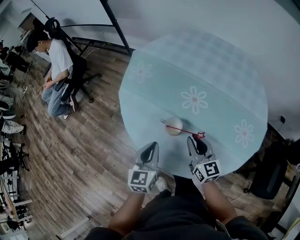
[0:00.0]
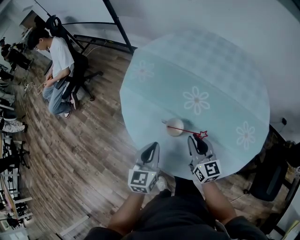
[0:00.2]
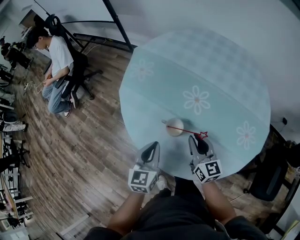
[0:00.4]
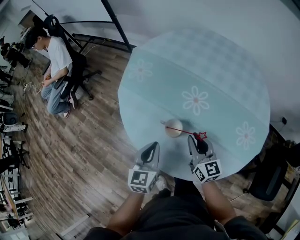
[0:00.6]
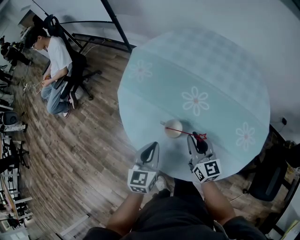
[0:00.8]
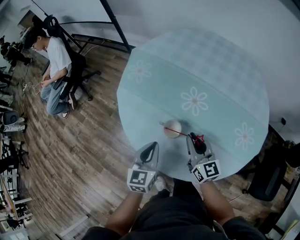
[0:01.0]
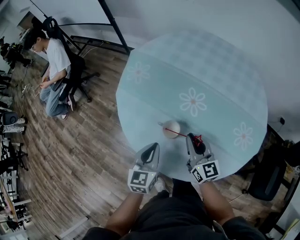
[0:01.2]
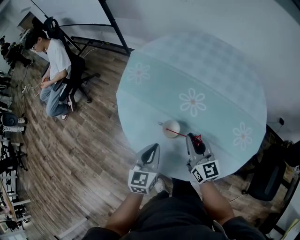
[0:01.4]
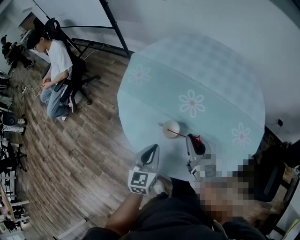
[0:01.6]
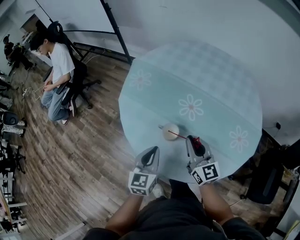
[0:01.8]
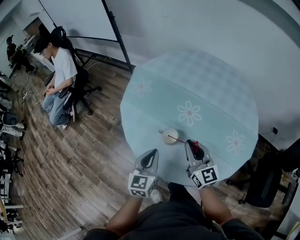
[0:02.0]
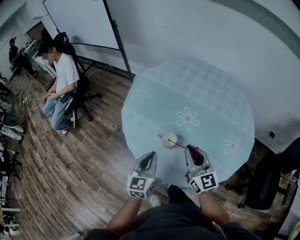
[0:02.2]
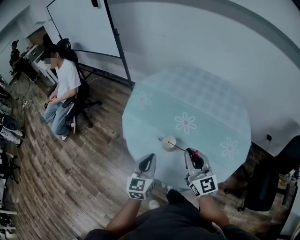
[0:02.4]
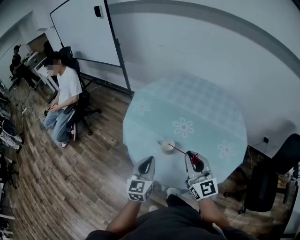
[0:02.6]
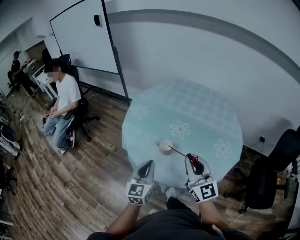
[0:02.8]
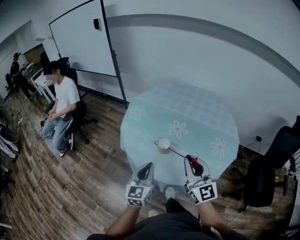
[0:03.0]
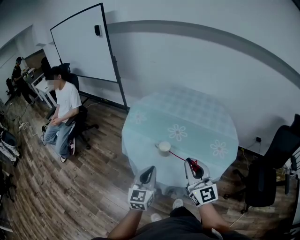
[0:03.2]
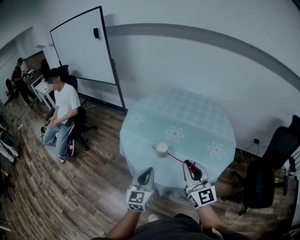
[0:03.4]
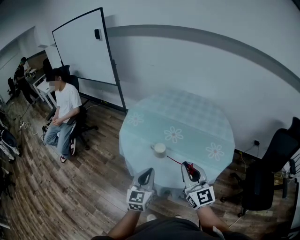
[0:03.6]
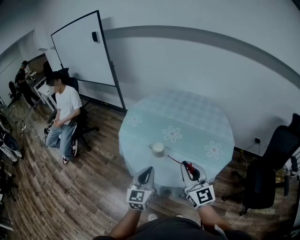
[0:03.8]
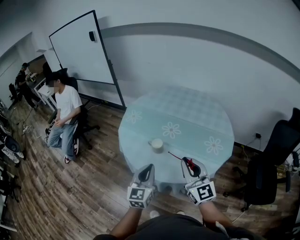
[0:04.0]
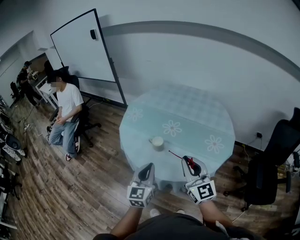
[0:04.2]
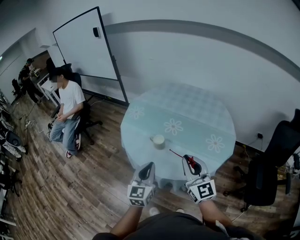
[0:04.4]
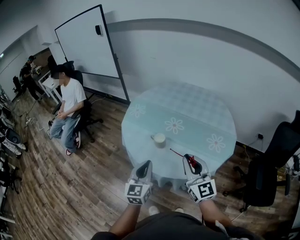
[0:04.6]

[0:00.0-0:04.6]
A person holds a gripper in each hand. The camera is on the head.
0:00.0 to 0:01.6: There are only small adjustments of the grippers.
0:01.6 to 0:03.0: The left gripper is displaced backward and upward by roughly 20 cm, while the right gripper shifts about 30 cm upward and backward, and turns by approximately 20 degrees.
0:03.0 to 0:04.6: The left gripper moves backward, some 5 cm; the right gripper is displaced backward and to the right by roughly 10 cm.

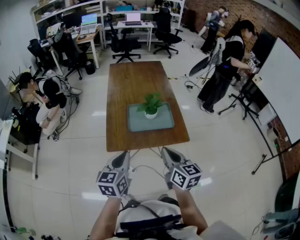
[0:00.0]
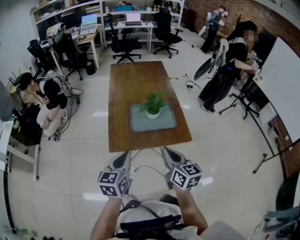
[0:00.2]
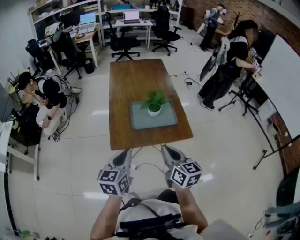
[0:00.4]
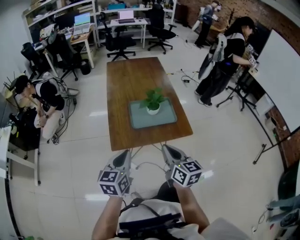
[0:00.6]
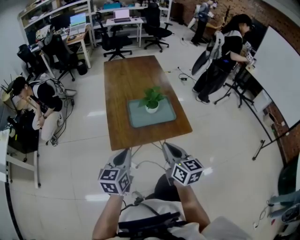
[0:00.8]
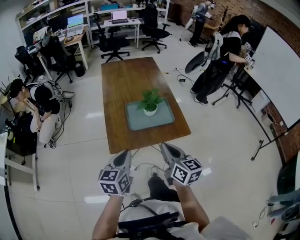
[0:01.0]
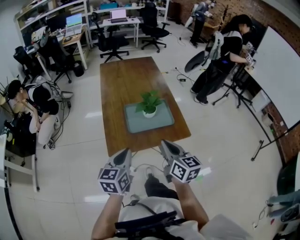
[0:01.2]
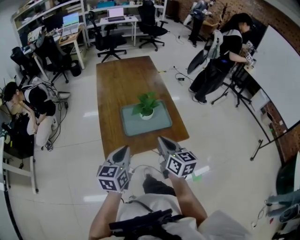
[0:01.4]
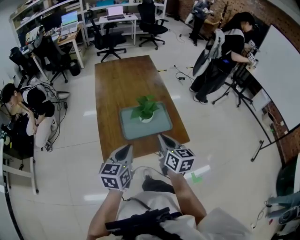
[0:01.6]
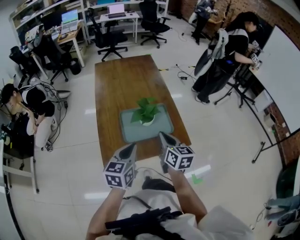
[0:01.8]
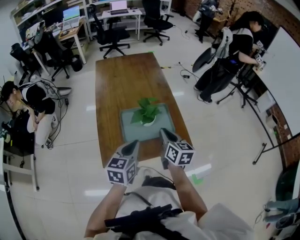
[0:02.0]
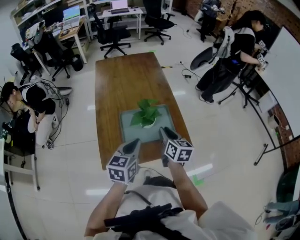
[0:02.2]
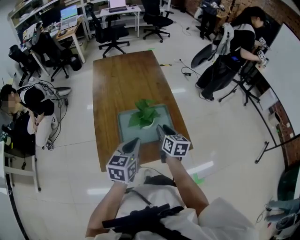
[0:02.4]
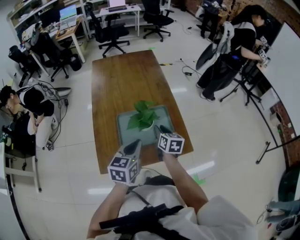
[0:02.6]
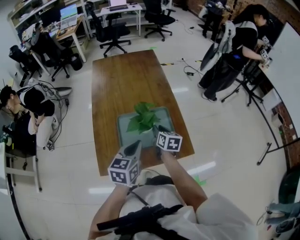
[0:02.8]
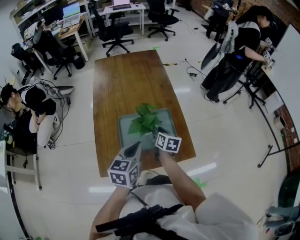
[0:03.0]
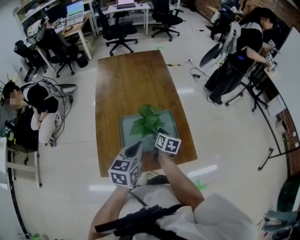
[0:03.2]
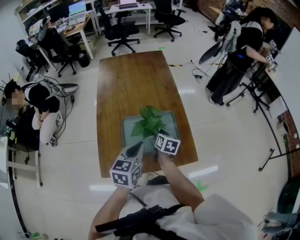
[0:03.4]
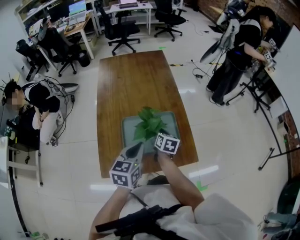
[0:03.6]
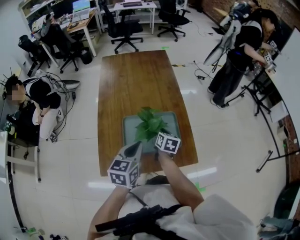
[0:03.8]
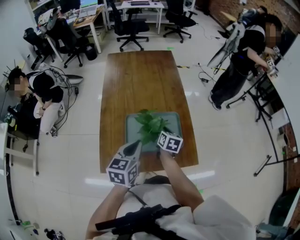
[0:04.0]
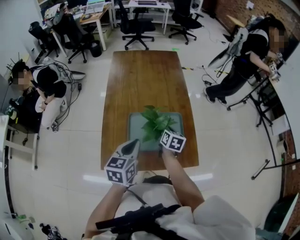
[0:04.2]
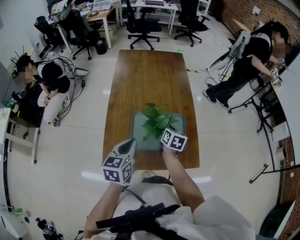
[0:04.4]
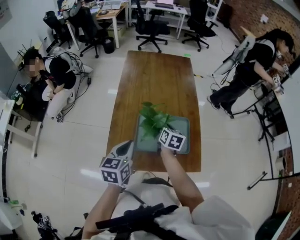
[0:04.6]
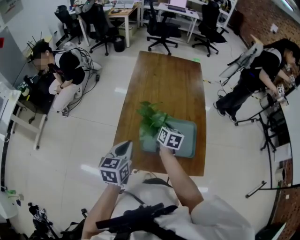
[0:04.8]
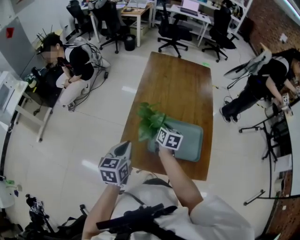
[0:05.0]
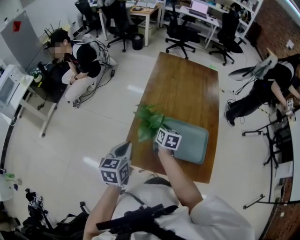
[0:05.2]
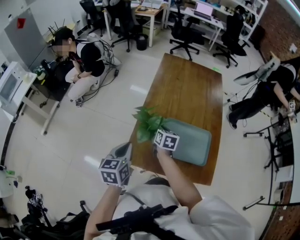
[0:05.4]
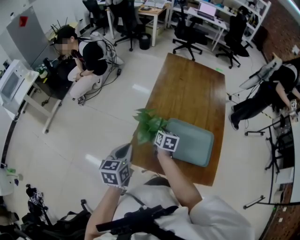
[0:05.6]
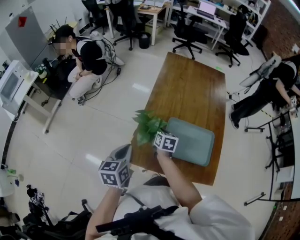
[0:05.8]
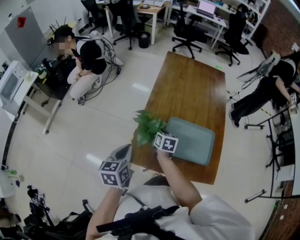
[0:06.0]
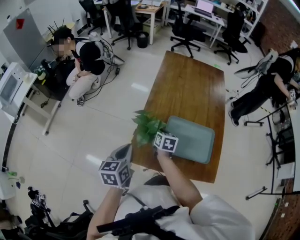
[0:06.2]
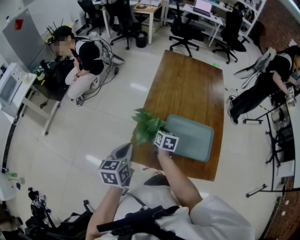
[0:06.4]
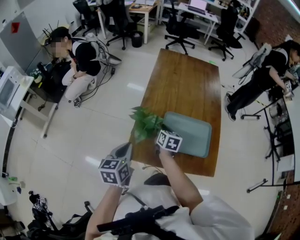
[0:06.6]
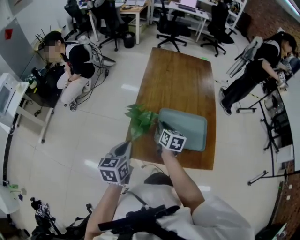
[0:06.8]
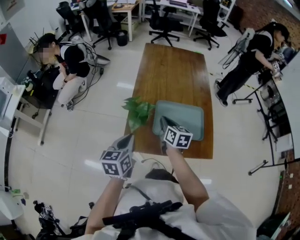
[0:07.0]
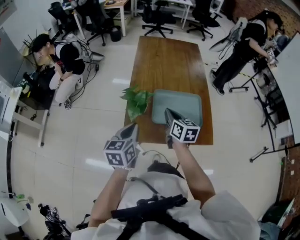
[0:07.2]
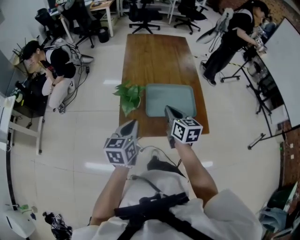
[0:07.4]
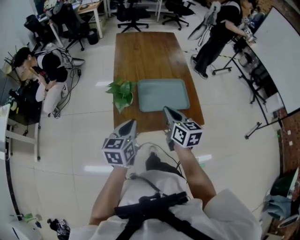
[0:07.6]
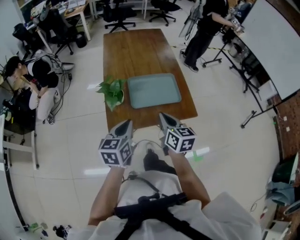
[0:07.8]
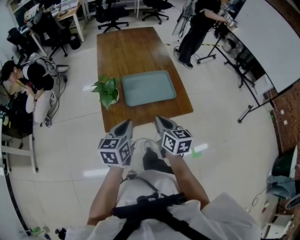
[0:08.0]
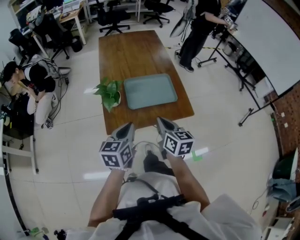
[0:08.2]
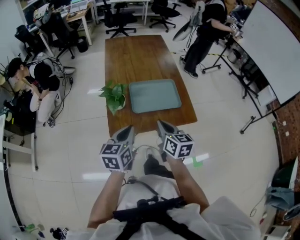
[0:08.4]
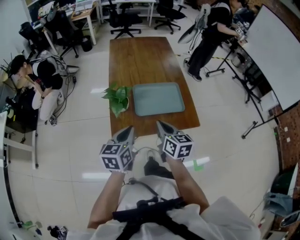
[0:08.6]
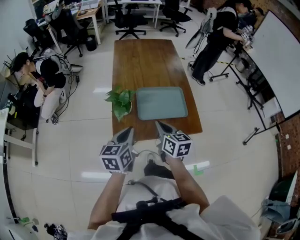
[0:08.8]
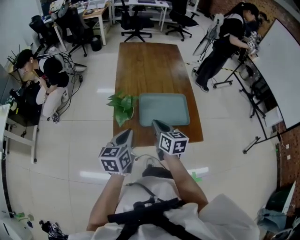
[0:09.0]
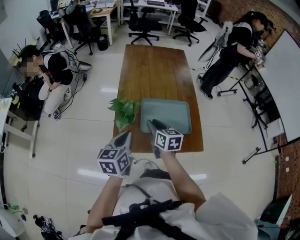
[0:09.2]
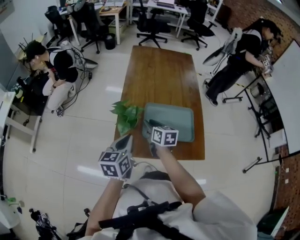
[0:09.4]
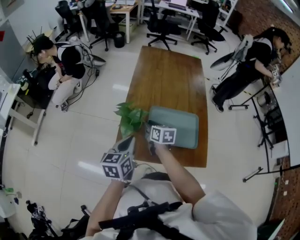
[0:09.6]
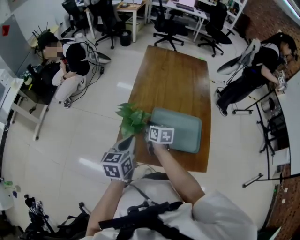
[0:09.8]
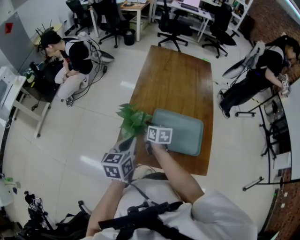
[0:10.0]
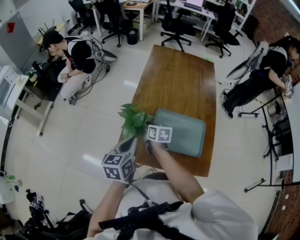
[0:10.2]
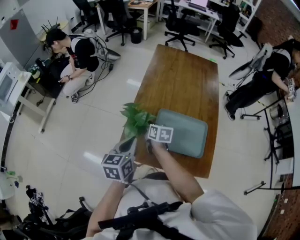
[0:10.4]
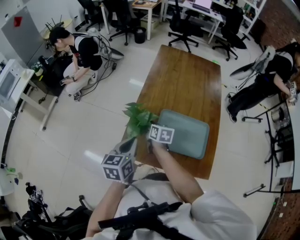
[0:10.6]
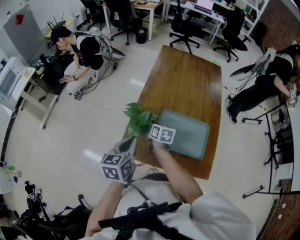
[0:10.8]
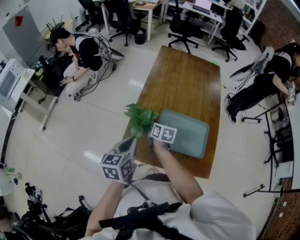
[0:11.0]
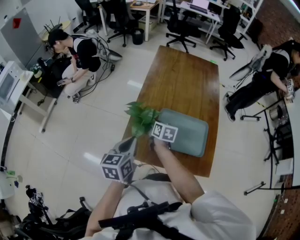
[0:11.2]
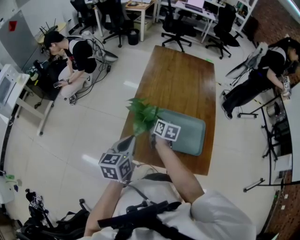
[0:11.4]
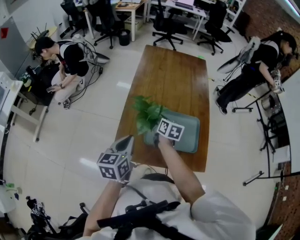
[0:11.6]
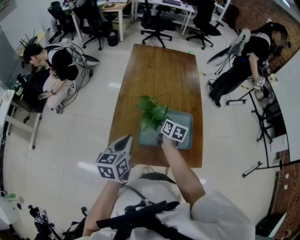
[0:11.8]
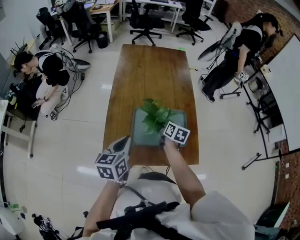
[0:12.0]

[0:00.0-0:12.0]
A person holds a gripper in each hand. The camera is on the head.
0:00.0 to 0:01.6: The two grippers go about 15 cm forward.
0:01.6 to 0:03.0: The left gripper is displaced forward, to the right and downward by roughly 15 cm; the right gripper goes some 25 cm forward and downward, and opens.
0:03.0 to 0:04.4: The right gripper closes up. The left gripper travels to the left by roughly 5 cm.
0:04.4 to 0:06.0: Both grippers move to the left, about 20 cm. The left gripper rotates about 20 degrees; the right gripper rotates approximately 20 degrees.
0:06.0 to 0:07.6: The left gripper moves to the right and backward, approximately 10 cm, and rotates approximately 30 degrees. Meanwhile the right gripper travels backward, upward and to the right by about 30 cm, and changes its angle by roughly 20 degrees.
0:07.6 to 0:09.0: The right gripper goes some 5 cm downward, and travels backward and back again, some 5 cm each way.
0:09.0 to 0:10.4: The left gripper heads forward, covering about 5 cm. Meanwhile the right gripper shifts some 25 cm forward, downward and to the left, and rotates some 20 degrees.
0:10.4 to 0:12.0: The right gripper moves to the right, roughly 20 cm, and rotates some 30 degrees. Meanwhile the left gripper is displaced to the right by some 5 cm.

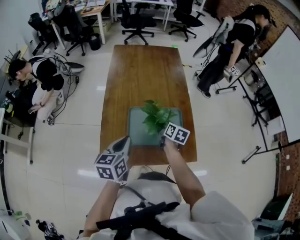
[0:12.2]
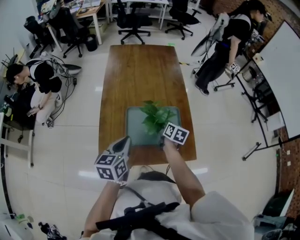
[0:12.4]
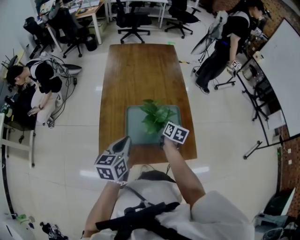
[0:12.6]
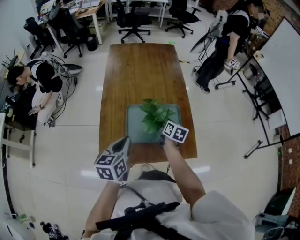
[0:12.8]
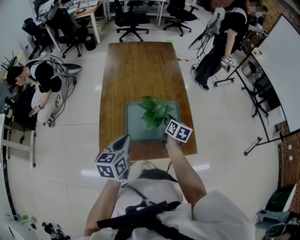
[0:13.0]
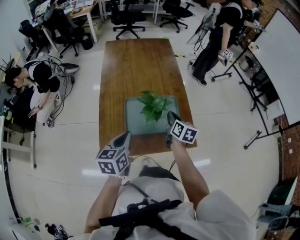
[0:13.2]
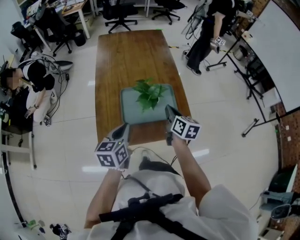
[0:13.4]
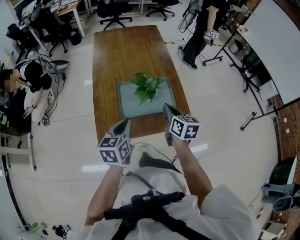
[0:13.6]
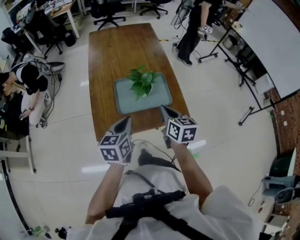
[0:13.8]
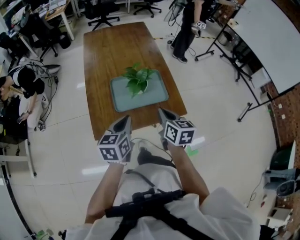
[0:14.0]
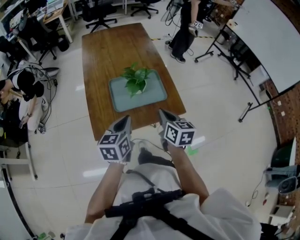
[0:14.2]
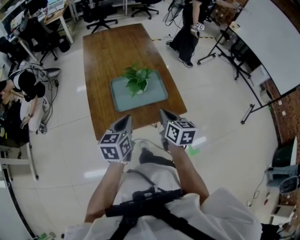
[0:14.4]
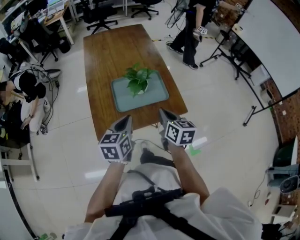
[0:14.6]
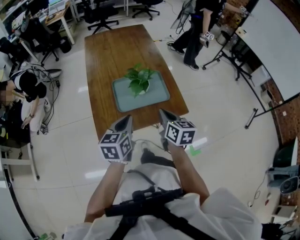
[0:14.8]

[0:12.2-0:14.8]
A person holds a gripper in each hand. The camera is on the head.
0:12.2 to 0:13.4: The right gripper shifts about 15 cm upward and backward.
0:13.4 to 0:14.8: The right gripper shifts approximately 15 cm backward, while the left gripper shifts about 5 cm backward.

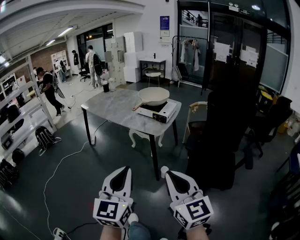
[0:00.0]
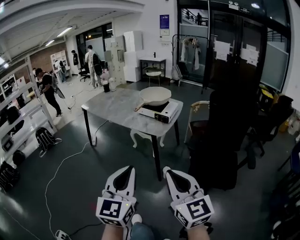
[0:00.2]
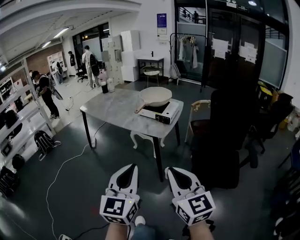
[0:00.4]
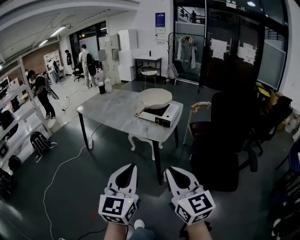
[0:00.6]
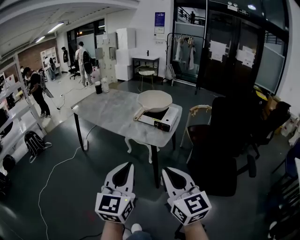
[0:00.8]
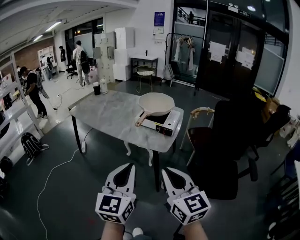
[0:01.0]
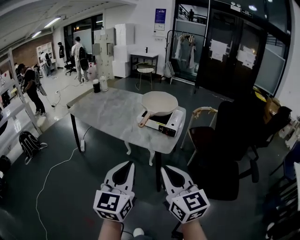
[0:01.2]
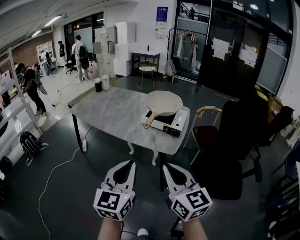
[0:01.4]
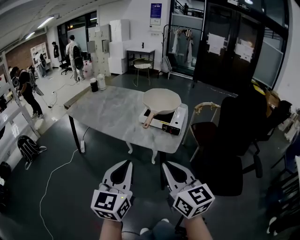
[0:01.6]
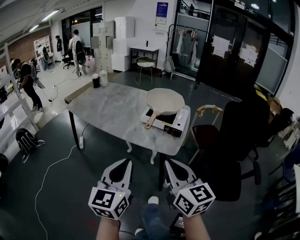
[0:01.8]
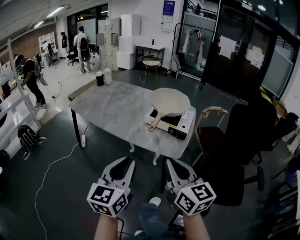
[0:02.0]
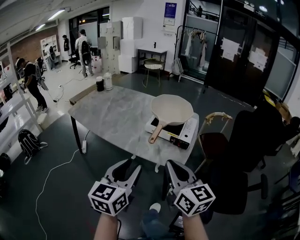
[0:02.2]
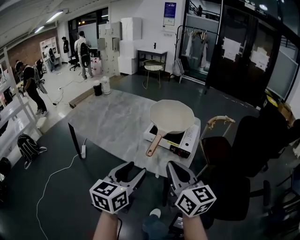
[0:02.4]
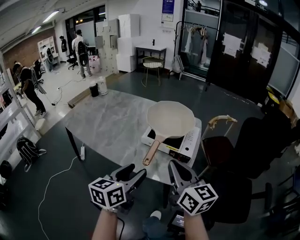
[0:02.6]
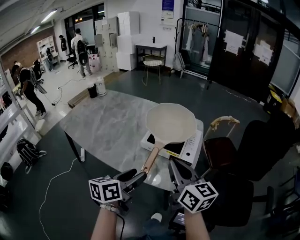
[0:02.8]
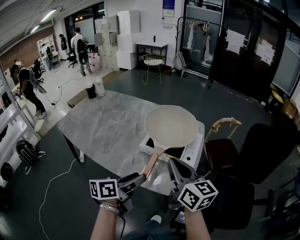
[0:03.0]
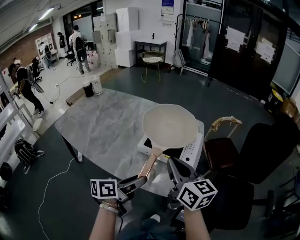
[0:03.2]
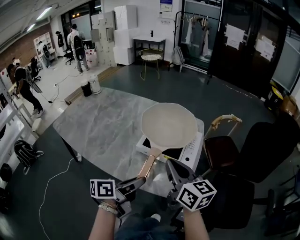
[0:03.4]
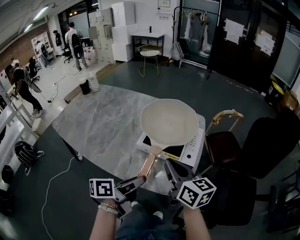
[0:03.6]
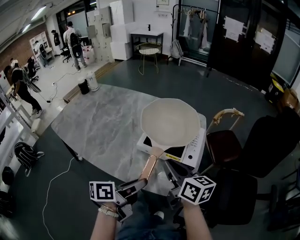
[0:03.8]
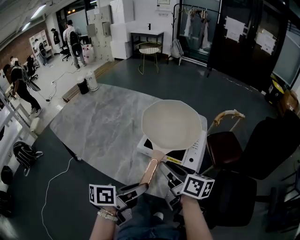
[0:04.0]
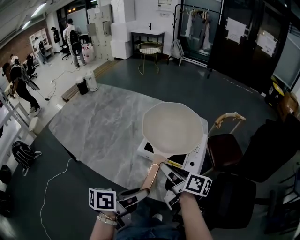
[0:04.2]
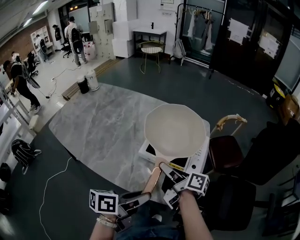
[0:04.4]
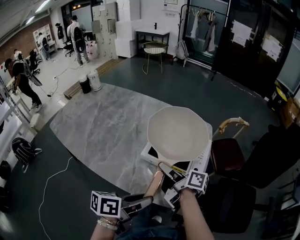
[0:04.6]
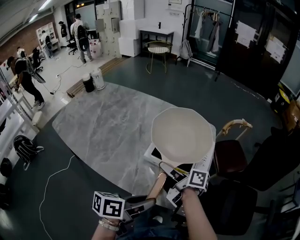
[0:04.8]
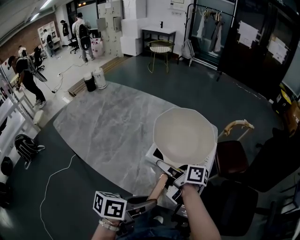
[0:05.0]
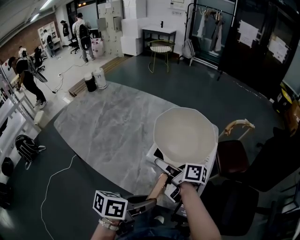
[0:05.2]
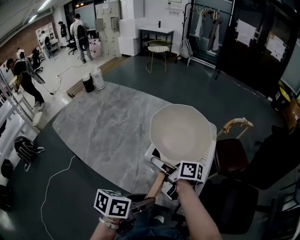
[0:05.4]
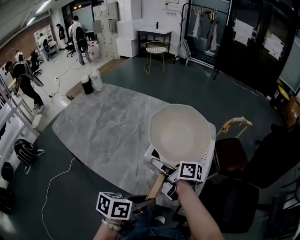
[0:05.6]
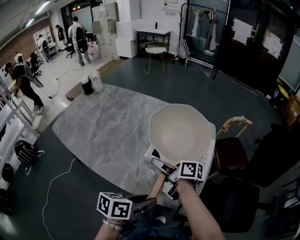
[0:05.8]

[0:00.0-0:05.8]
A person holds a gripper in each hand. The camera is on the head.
0:00.0 to 0:01.4: The left gripper goes roughly 25 cm forward. Meanwhile the right gripper goes some 30 cm forward and to the left.
0:01.4 to 0:02.8: The right gripper moves forward, roughly 30 cm. The left gripper is displaced forward and downward by about 30 cm, changes its angle by some 50 degrees, and opens.
0:02.8 to 0:04.4: The right gripper travels downward and forward by about 20 cm, twists some 50 degrees clockwise, seen from behind, and opens. Meanwhile the left gripper shifts by some 5 cm, turns by some 30 degrees, and closes.
0:04.4 to 0:05.8: The right gripper moves to the left, approximately 5 cm.
